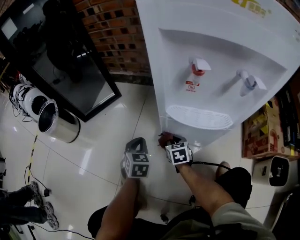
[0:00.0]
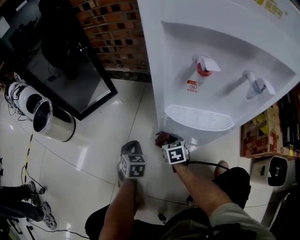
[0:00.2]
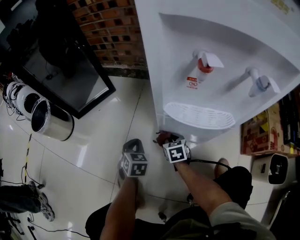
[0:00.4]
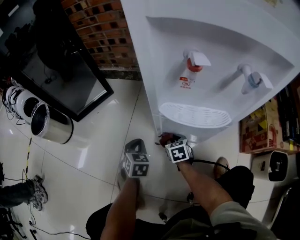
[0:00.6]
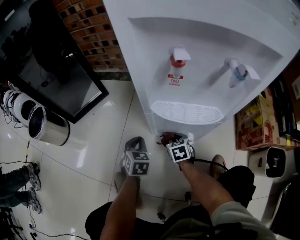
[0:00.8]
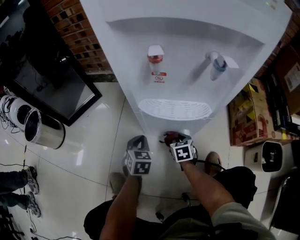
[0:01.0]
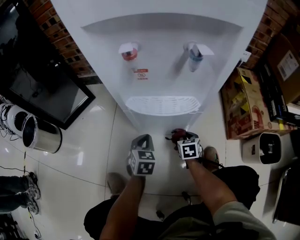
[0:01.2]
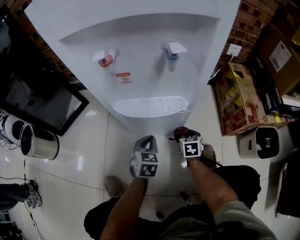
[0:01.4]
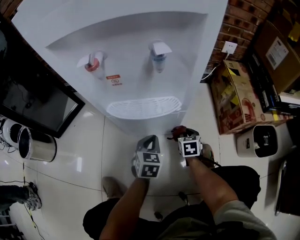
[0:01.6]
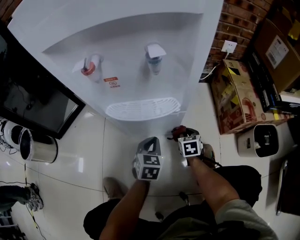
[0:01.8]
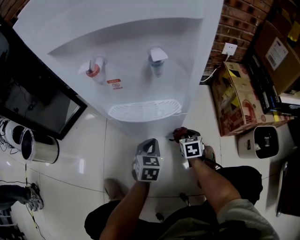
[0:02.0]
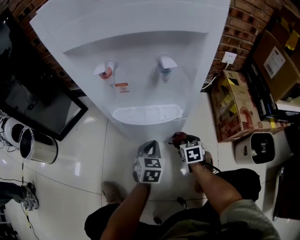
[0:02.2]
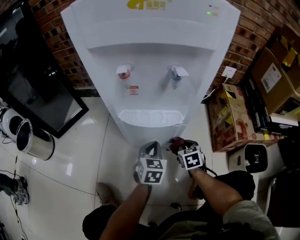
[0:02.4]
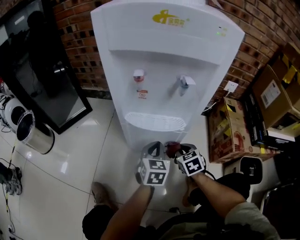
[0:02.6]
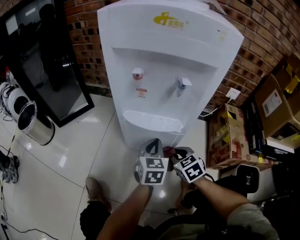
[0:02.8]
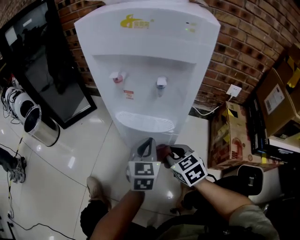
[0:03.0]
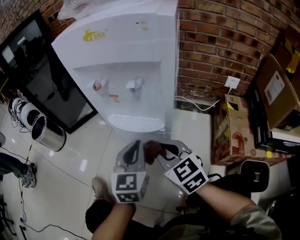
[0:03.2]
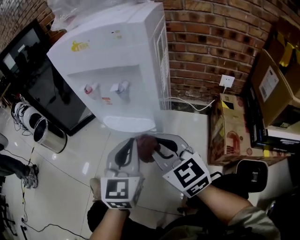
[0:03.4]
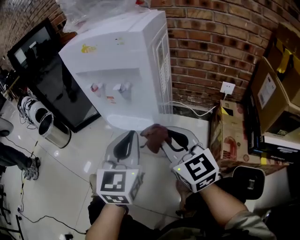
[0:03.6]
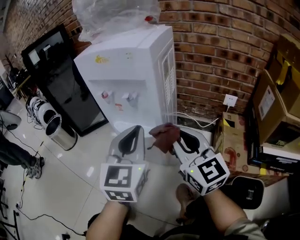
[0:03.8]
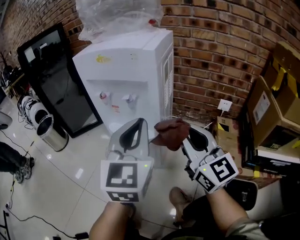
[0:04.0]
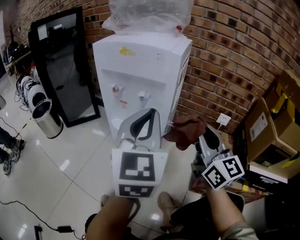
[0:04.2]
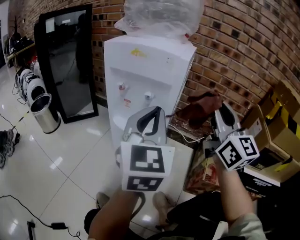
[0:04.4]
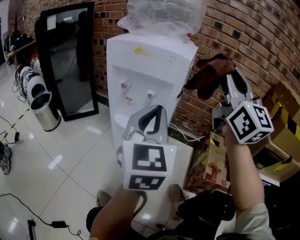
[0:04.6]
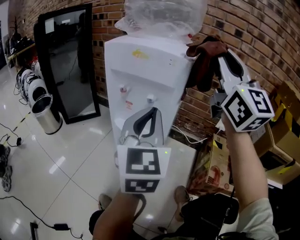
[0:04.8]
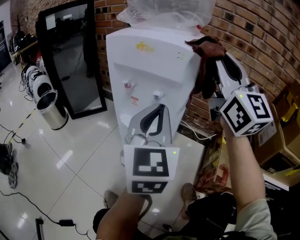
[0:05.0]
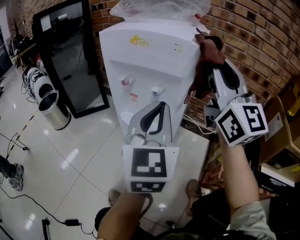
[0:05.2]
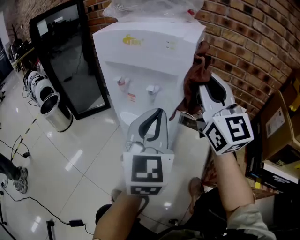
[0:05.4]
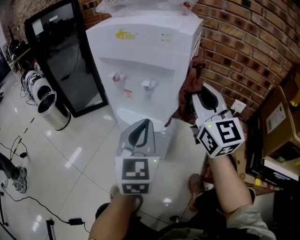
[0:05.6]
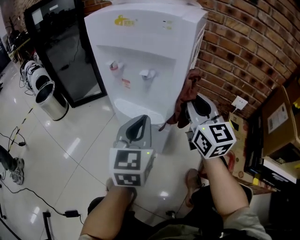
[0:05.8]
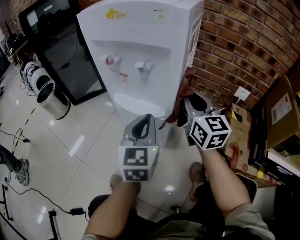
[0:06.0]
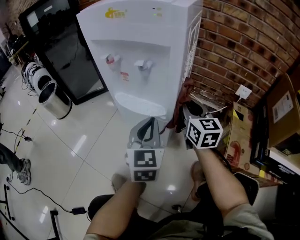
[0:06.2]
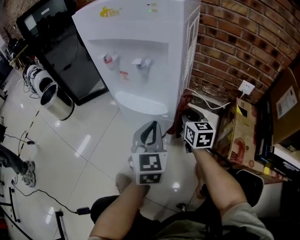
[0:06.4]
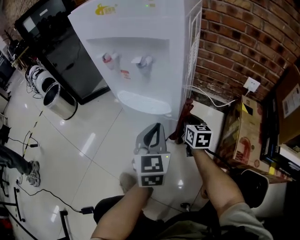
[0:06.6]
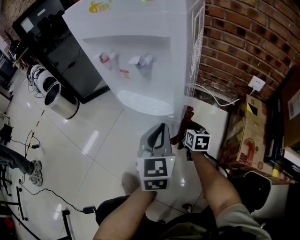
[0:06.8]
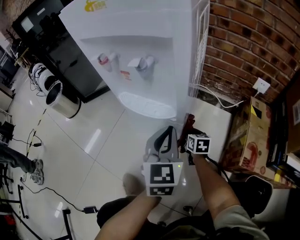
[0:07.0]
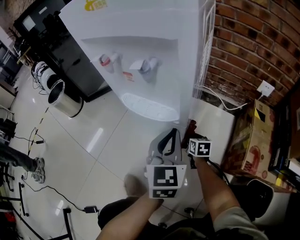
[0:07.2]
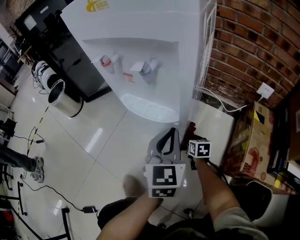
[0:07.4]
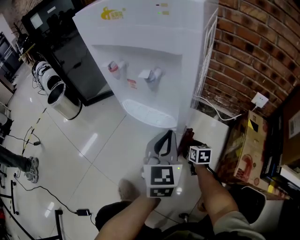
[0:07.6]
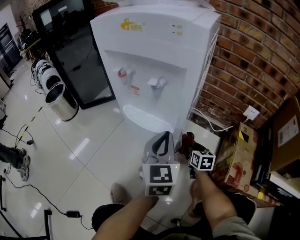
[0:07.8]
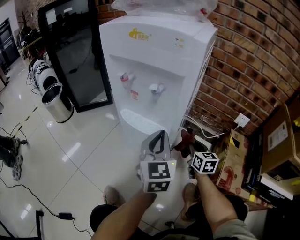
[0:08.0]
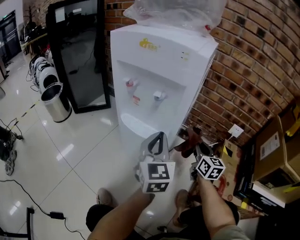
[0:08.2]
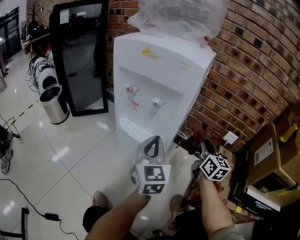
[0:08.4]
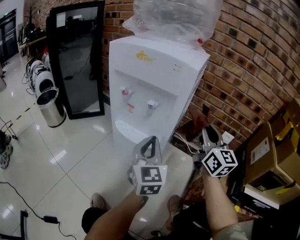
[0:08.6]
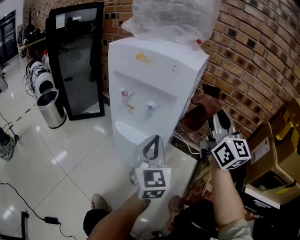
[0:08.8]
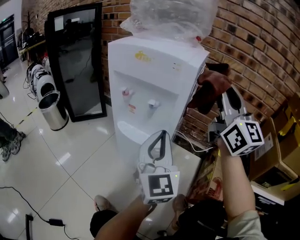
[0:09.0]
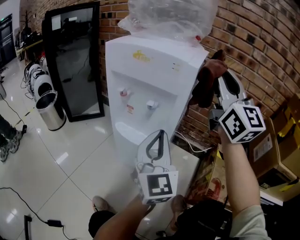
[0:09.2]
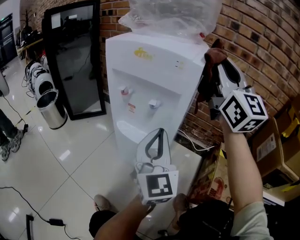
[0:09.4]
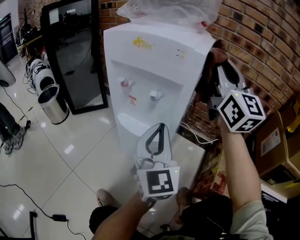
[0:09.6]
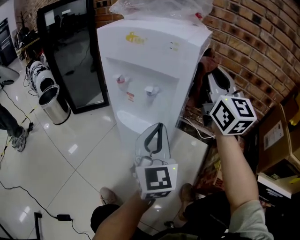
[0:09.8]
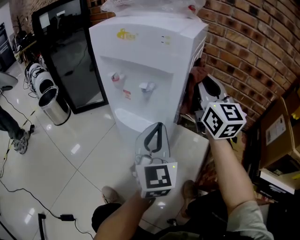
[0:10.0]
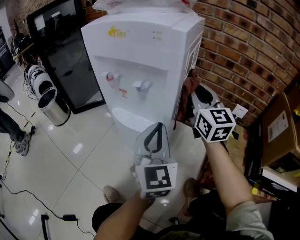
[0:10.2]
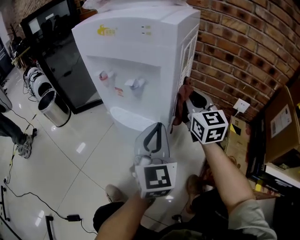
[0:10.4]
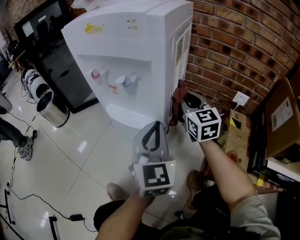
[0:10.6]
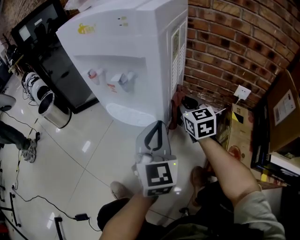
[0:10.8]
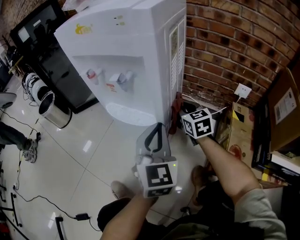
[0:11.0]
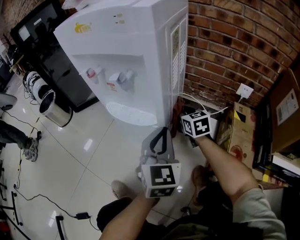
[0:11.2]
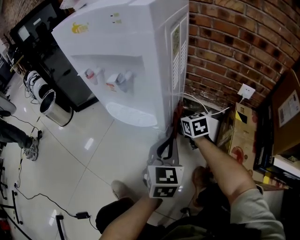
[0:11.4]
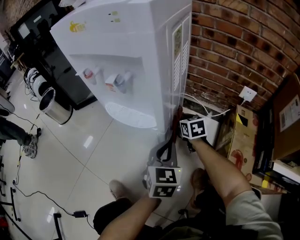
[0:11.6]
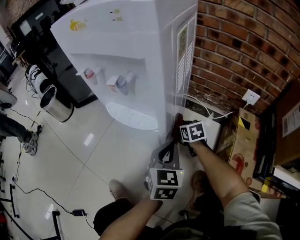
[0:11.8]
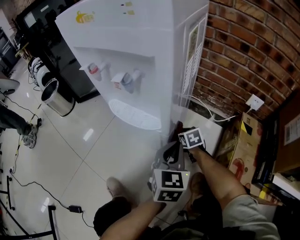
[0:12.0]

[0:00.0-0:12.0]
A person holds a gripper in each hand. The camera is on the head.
0:00.0 to 0:01.6: The left gripper moves approximately 25 cm, and changes its angle by some 20 degrees; the right gripper moves roughly 25 cm, and swivels about 20 degrees.
0:01.6 to 0:03.0: The grippers both shift upward by roughly 20 cm. The left gripper turns by roughly 30 degrees. Meanwhile the right gripper rotates roughly 50 degrees.
0:03.0 to 0:04.4: The right gripper goes some 40 cm upward and to the right, and tilts its fingers some 60 degrees upward; the left gripper heads upward, covering some 30 cm, and changes its angle by about 30 degrees.
0:04.4 to 0:06.0: The right gripper is displaced downward and forward by about 25 cm, and changes its angle by about 20 degrees, while the left gripper heads downward, covering roughly 20 cm.
0:06.0 to 0:07.6: The left gripper changes place by approximately 5 cm. Meanwhile the right gripper travels downward by approximately 35 cm, and tilts its fingers roughly 40 degrees downward.
0:07.6 to 0:09.0: The right gripper shifts about 60 cm upward, and tips its fingers upward by approximately 70 degrees. Meanwhile the left gripper heads upward, covering roughly 15 cm, and turns by roughly 30 degrees.
0:09.0 to 0:10.4: The left gripper shifts about 5 cm downward, while the right gripper is displaced downward by roughly 25 cm, and turns by about 30 degrees.
0:10.4 to 0:12.0: The left gripper moves downward and to the right, some 15 cm, and swivels some 20 degrees, while the right gripper is displaced downward by approximately 35 cm, and tips its fingers downward by about 50 degrees.

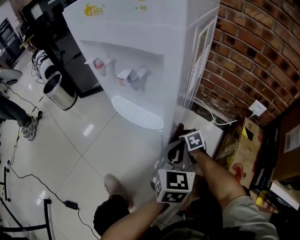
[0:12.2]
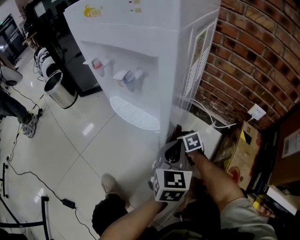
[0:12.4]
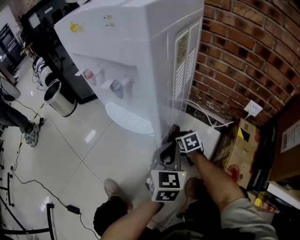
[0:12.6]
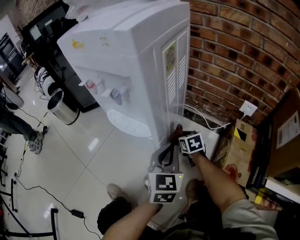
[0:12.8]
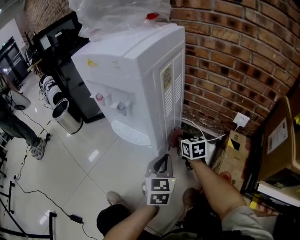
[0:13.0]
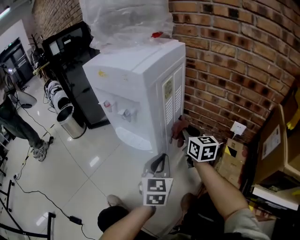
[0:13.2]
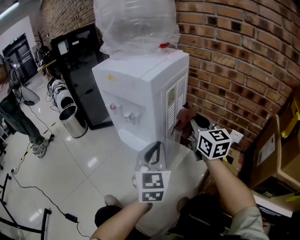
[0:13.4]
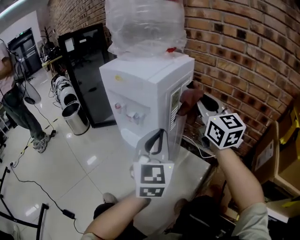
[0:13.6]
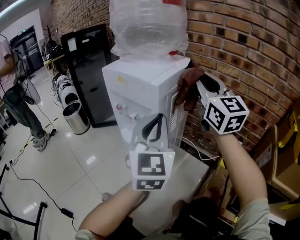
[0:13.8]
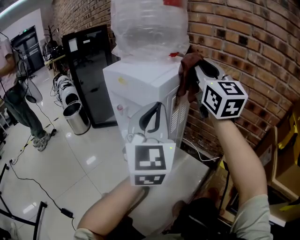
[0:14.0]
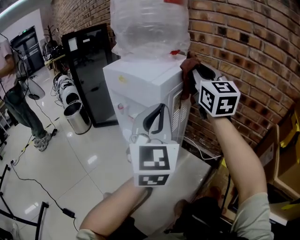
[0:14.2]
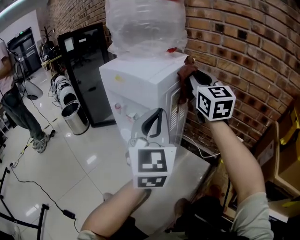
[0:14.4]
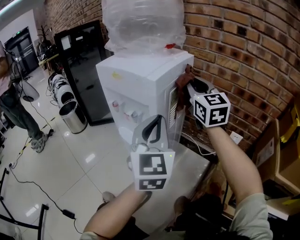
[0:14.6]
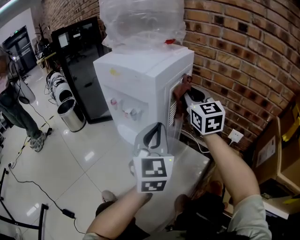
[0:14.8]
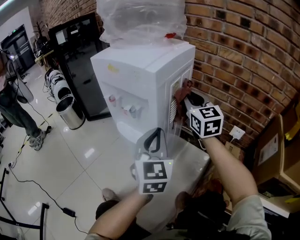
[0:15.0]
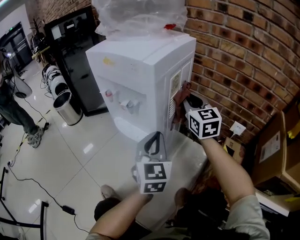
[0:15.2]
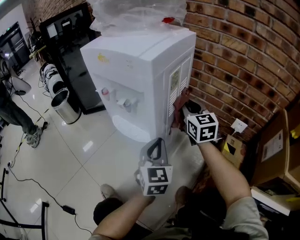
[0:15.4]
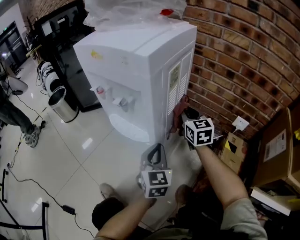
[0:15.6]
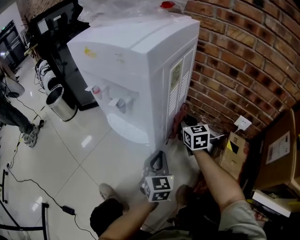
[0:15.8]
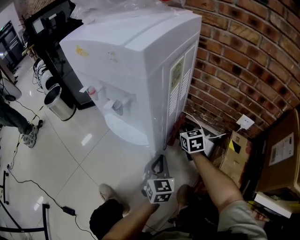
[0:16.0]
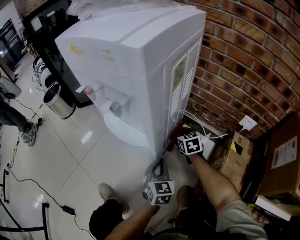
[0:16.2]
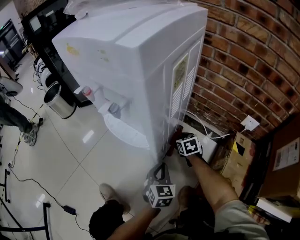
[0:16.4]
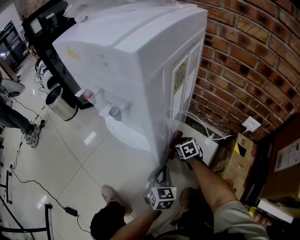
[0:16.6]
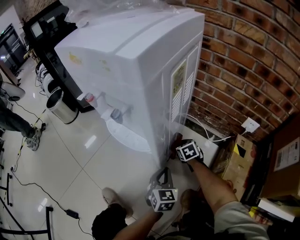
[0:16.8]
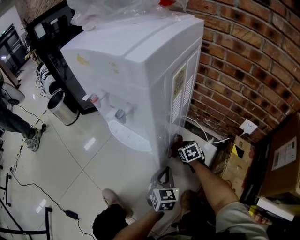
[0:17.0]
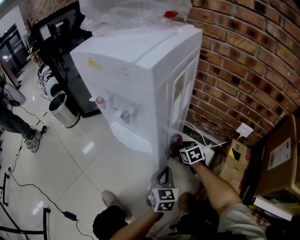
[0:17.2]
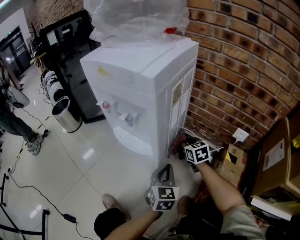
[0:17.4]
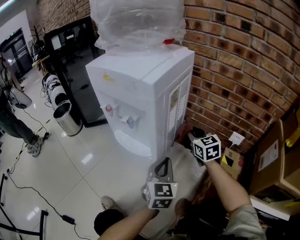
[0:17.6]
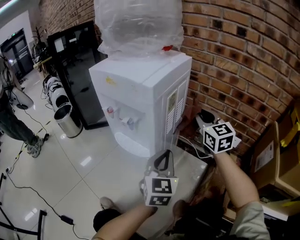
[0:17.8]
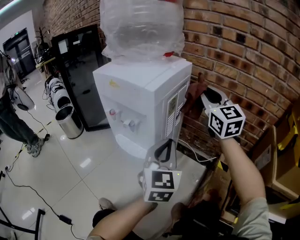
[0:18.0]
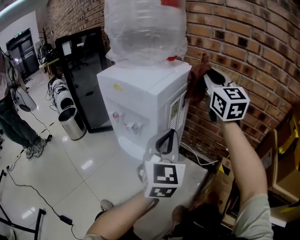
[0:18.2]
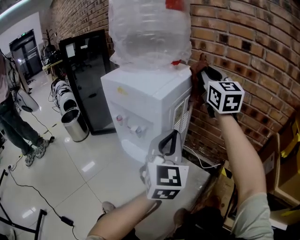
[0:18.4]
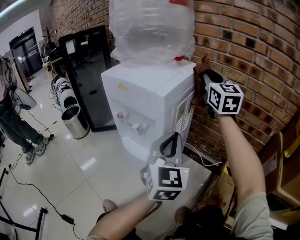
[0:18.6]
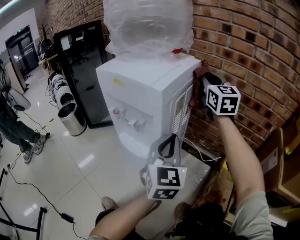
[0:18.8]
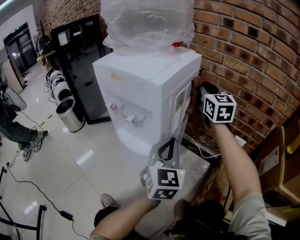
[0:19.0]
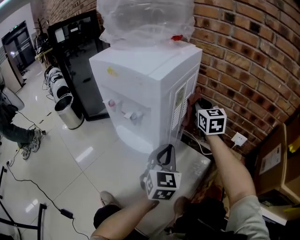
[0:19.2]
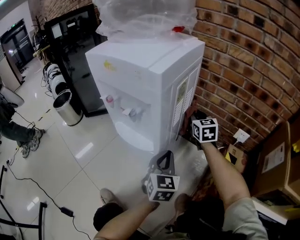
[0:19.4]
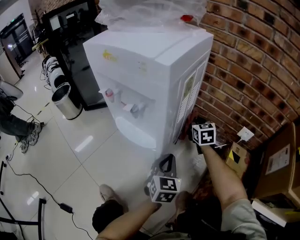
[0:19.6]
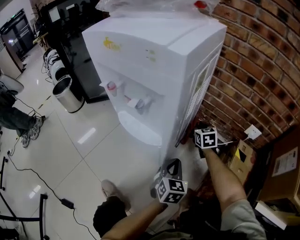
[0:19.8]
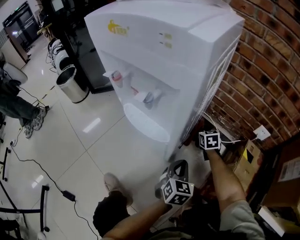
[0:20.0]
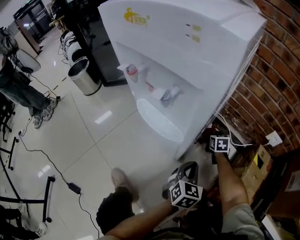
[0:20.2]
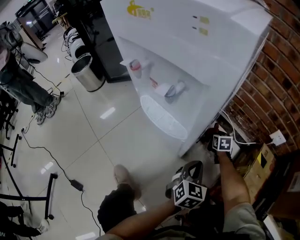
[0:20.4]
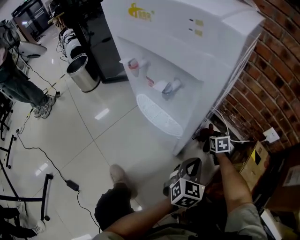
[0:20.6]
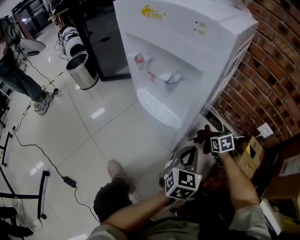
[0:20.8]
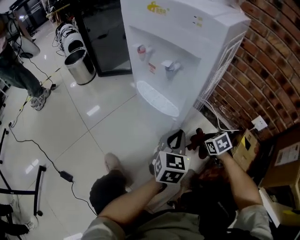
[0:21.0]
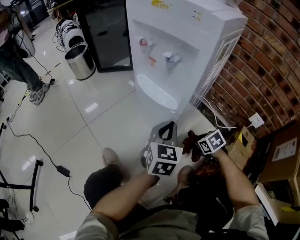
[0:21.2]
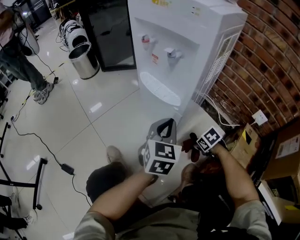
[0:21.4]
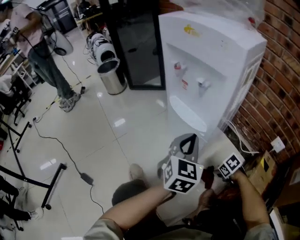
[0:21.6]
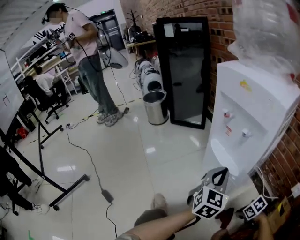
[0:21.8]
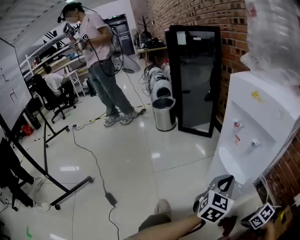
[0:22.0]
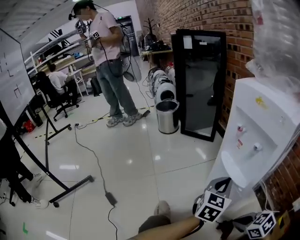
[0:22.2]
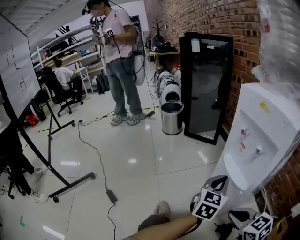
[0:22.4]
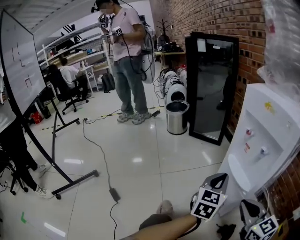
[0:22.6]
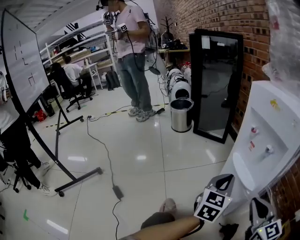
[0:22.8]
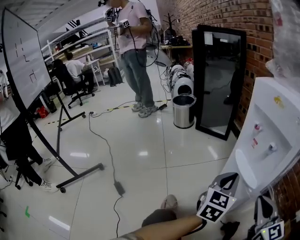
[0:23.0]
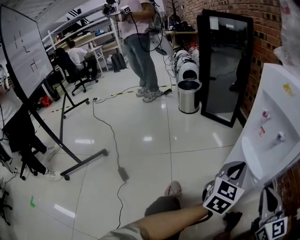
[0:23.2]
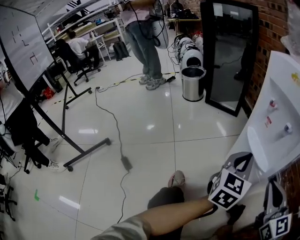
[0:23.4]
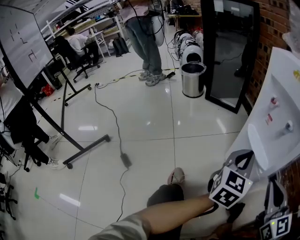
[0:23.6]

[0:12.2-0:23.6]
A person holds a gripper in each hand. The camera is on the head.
0:12.2 to 0:13.6: The right gripper heads upward, covering some 60 cm, and points its fingers roughly 60 degrees further upward. The left gripper shifts roughly 25 cm upward, and changes its angle by about 30 degrees.
0:13.6 to 0:15.0: The left gripper moves downward, roughly 5 cm. The right gripper heads downward and forward, covering about 10 cm.
0:15.0 to 0:16.4: Both grippers travel together downward, some 35 cm. The right gripper tilts its fingers about 50 degrees downward; the left gripper changes its angle by some 30 degrees.
0:16.4 to 0:17.8: The left gripper goes some 25 cm upward, and changes its angle by some 20 degrees, while the right gripper shifts approximately 40 cm upward, and tips its fingers upward by some 40 degrees.
0:17.8 to 0:19.4: The right gripper goes roughly 15 cm downward and forward. The left gripper goes approximately 10 cm downward.
0:19.4 to 0:20.8: The left gripper is displaced downward by some 5 cm; the right gripper heads downward and backward, covering roughly 25 cm, and tips its fingers downward by some 30 degrees.
0:20.8 to 0:22.2: The left gripper moves approximately 20 cm. The right gripper ends up some 30 cm from where it was, changes its angle by some 50 degrees, and opens, then closes once more.
0:22.2 to 0:23.6: The right gripper is displaced upward by roughly 15 cm, and angles its fingers upward, by some 40 degrees.
